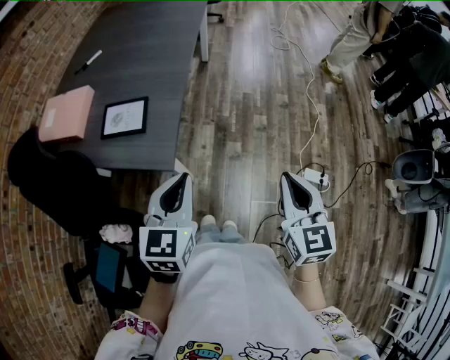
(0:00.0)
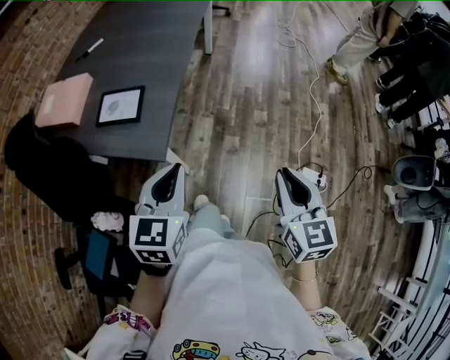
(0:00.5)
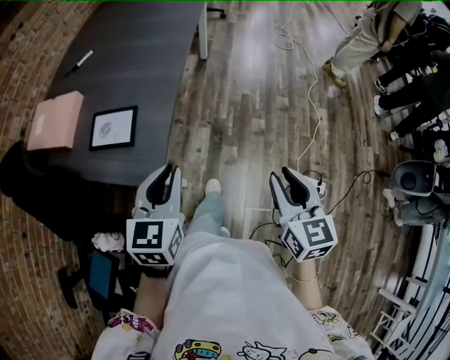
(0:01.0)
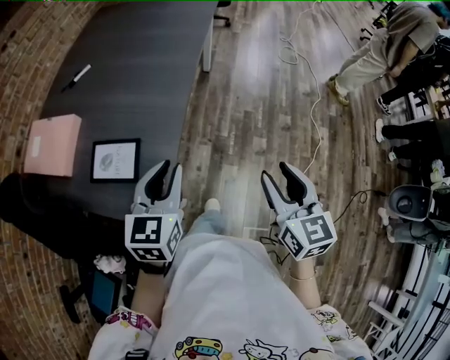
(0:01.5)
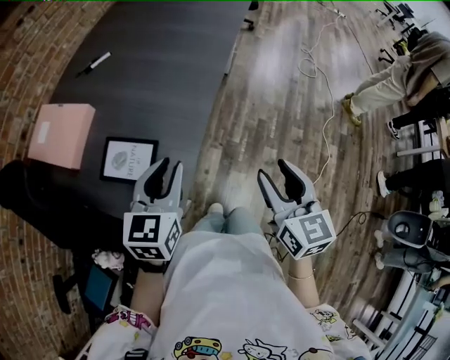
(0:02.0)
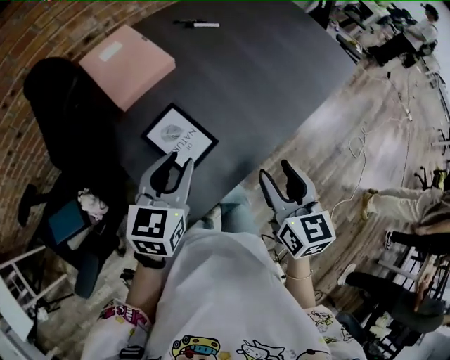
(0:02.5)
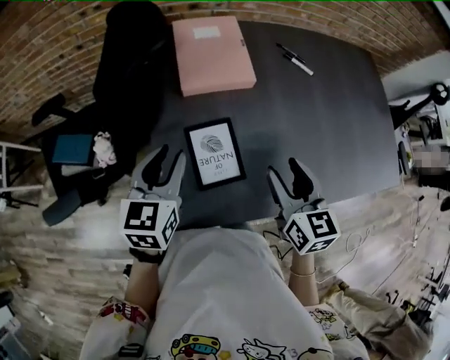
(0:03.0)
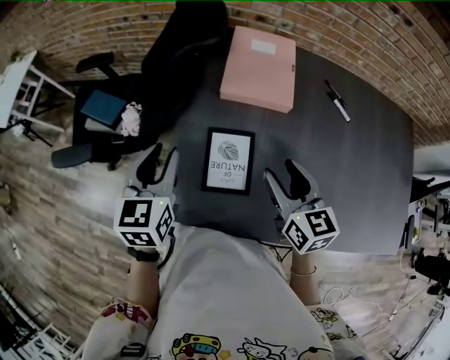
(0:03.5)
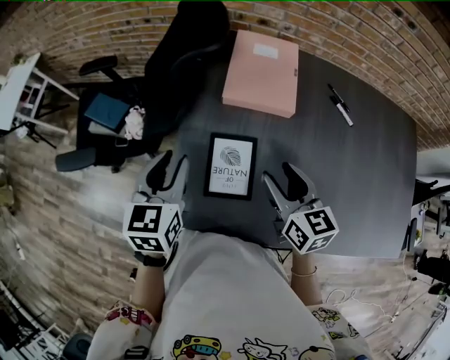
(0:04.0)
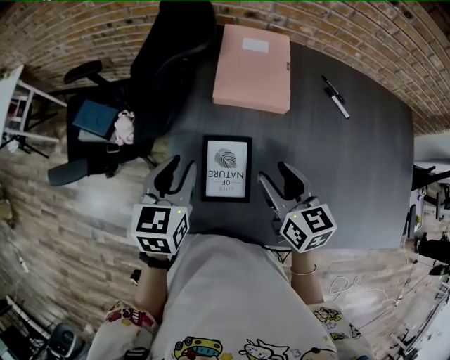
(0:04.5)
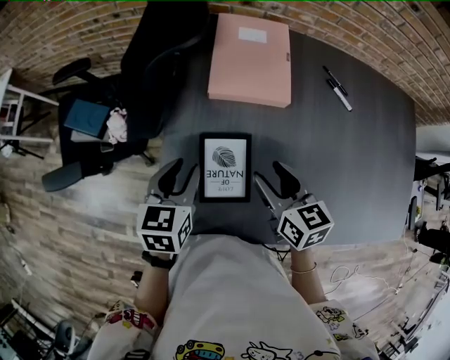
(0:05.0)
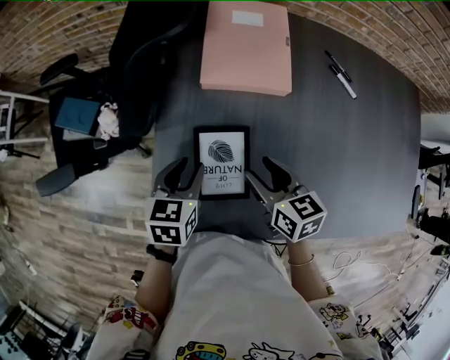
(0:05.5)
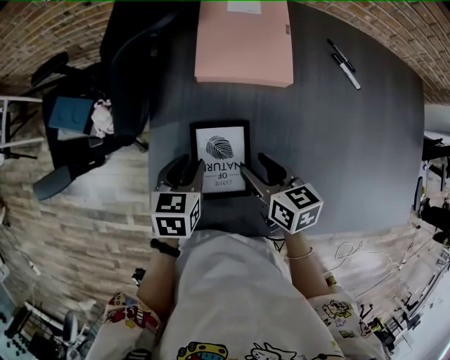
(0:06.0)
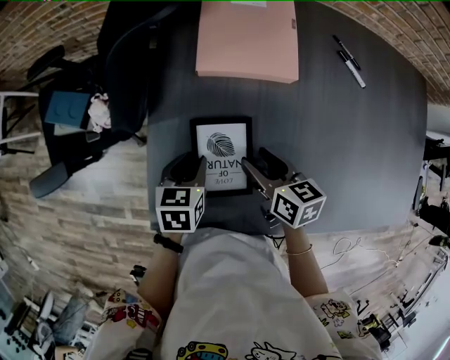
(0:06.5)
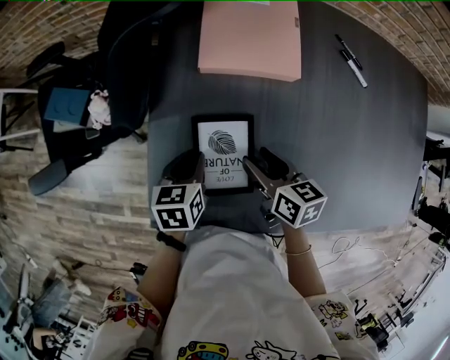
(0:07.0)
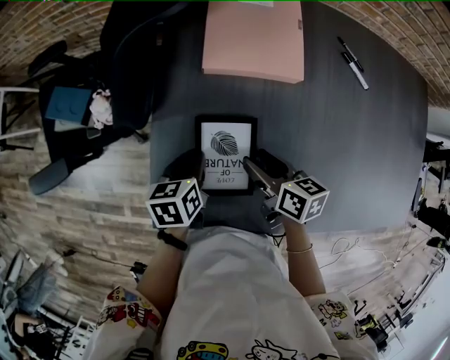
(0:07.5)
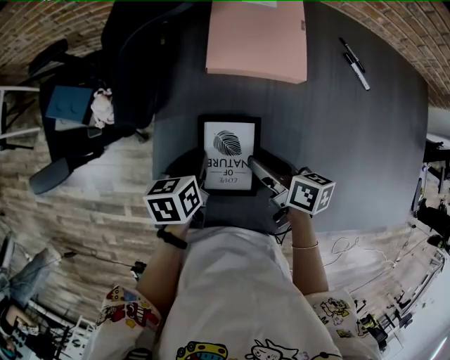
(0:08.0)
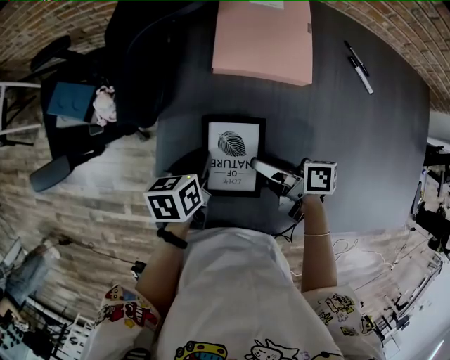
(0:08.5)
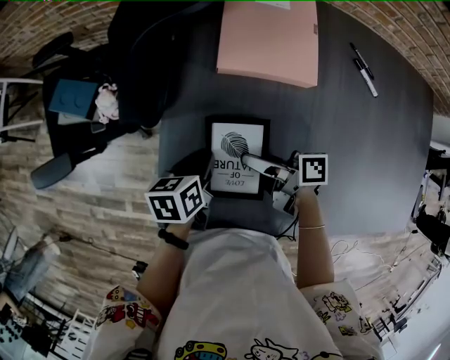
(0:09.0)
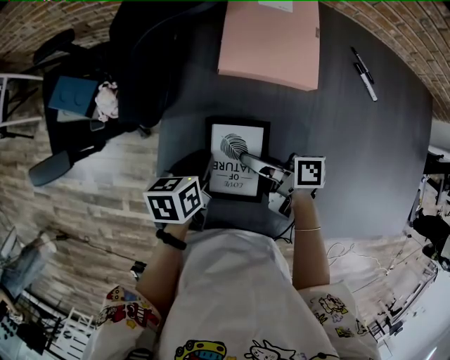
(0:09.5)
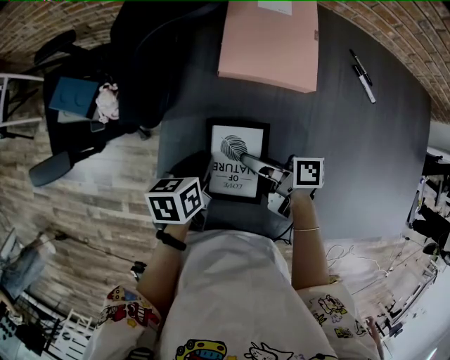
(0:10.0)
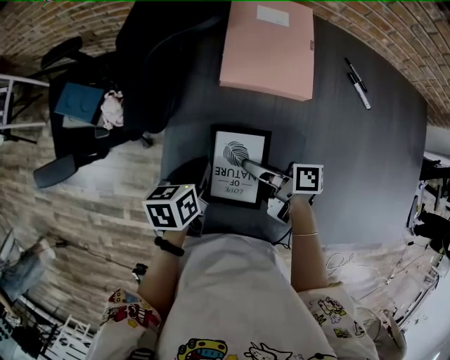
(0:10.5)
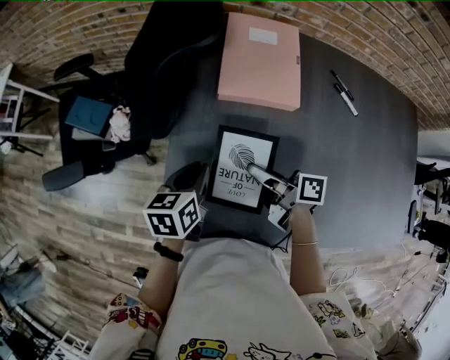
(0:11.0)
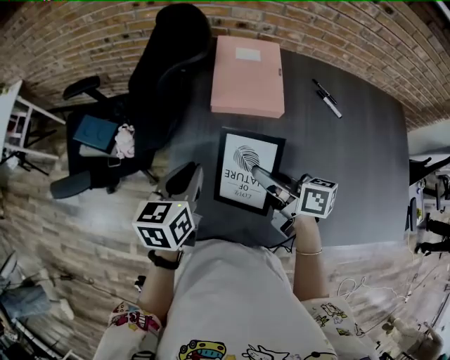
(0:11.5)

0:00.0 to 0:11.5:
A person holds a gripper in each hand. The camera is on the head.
0:00.0 to 0:02.0: The two grippers go about 25 cm forward. The left gripper opens; the right gripper opens up.
0:02.0 to 0:04.0: The left gripper ends up approximately 20 cm from where it was, and turns by about 90 degrees, while the right gripper moves about 40 cm, and swivels about 90 degrees.
0:04.0 to 0:06.0: Both grippers travel together downward, about 15 cm. The right gripper changes its angle by some 20 degrees. The left gripper rotates some 30 degrees.
0:06.0 to 0:07.5: The grippers stay close to where they were, moving slightly.
0:07.5 to 0:09.5: The right gripper shifts some 5 cm to the left, turns by about 40 degrees, and closes up.
0:09.5 to 0:11.5: Both grippers travel together upward, approximately 15 cm. The right gripper changes its angle by roughly 30 degrees. The left gripper turns by about 30 degrees.

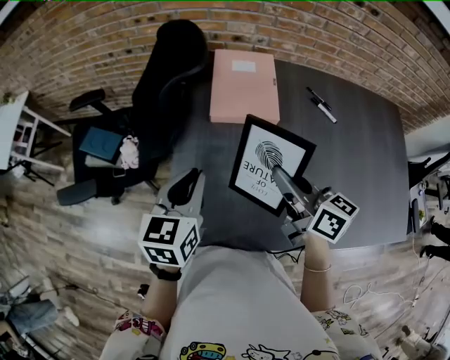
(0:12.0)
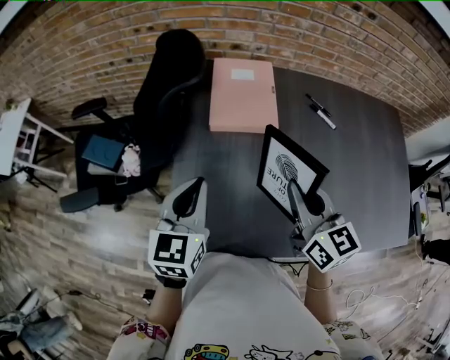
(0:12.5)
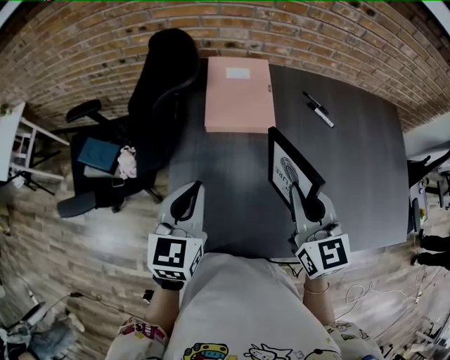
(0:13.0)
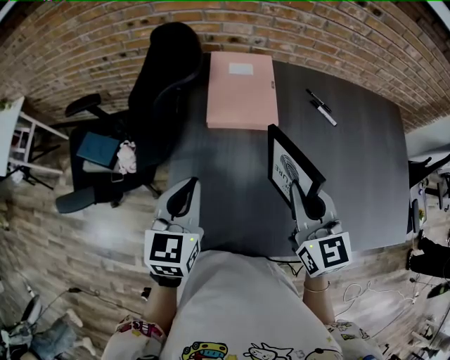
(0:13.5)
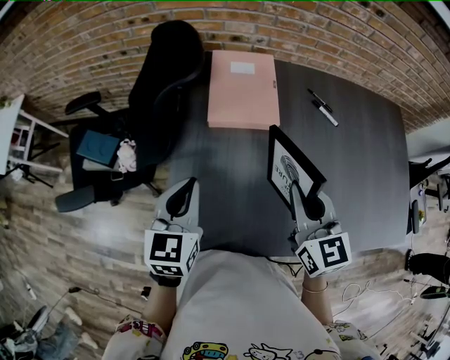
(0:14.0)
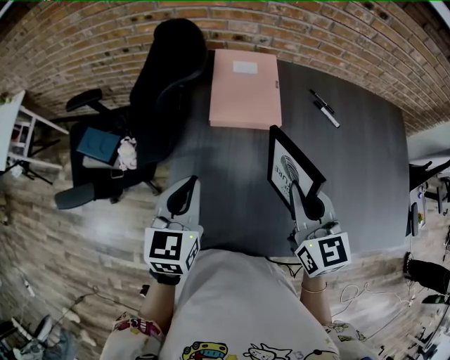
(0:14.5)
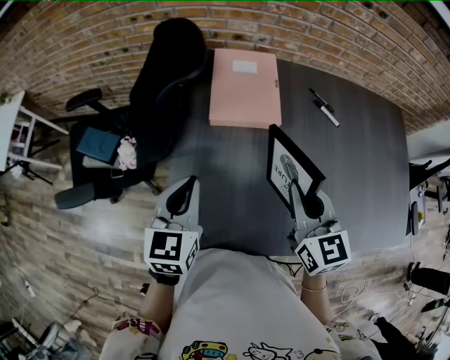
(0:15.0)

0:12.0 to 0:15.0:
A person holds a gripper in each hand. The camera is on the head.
0:12.0 to 0:13.5: The right gripper changes its angle by roughly 40 degrees.
0:13.5 to 0:15.0: Neither gripper changes place.

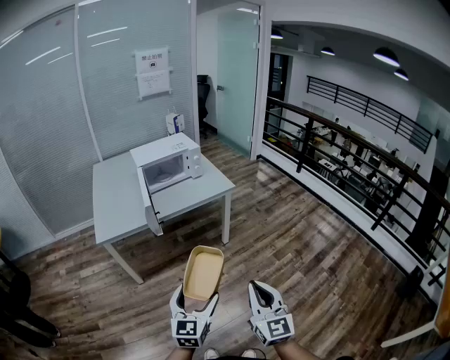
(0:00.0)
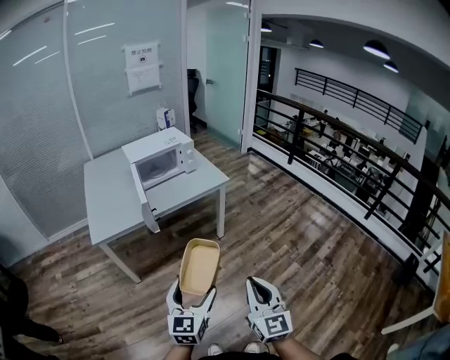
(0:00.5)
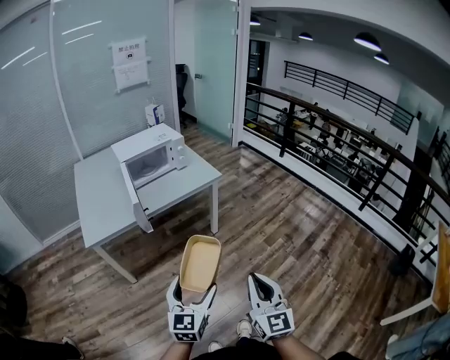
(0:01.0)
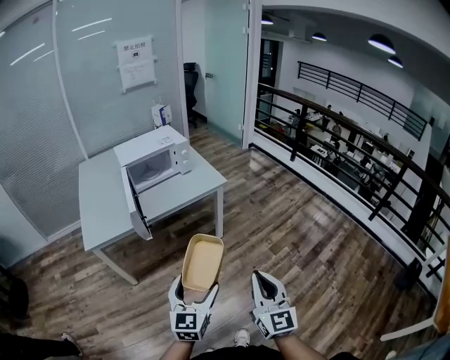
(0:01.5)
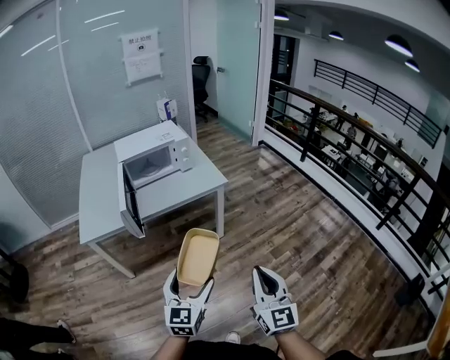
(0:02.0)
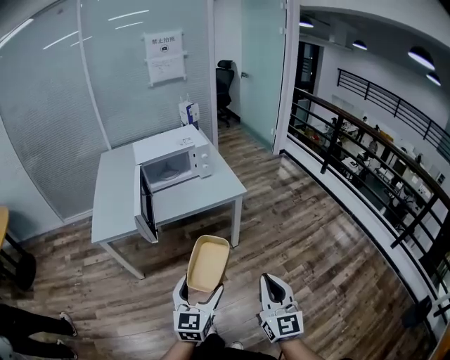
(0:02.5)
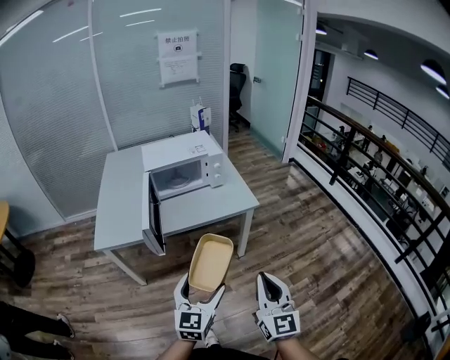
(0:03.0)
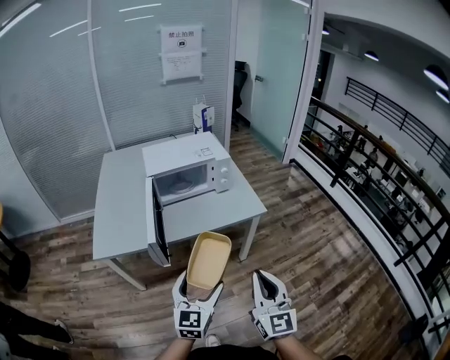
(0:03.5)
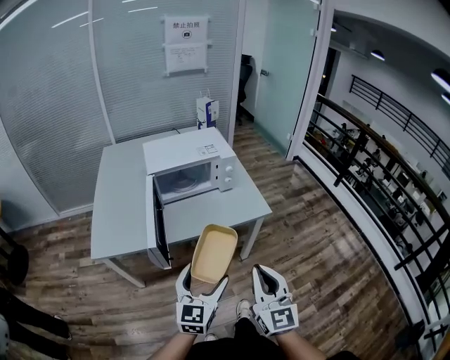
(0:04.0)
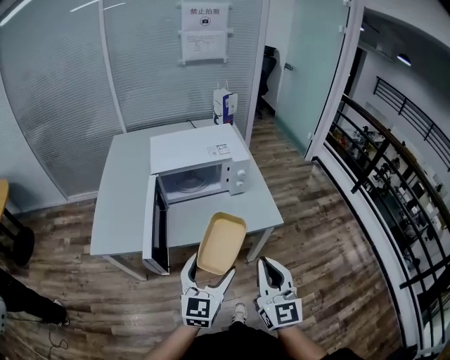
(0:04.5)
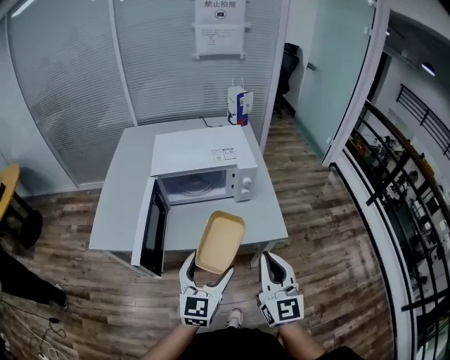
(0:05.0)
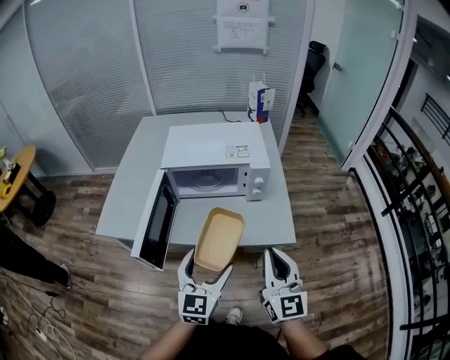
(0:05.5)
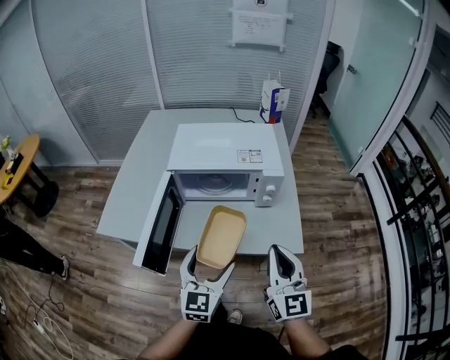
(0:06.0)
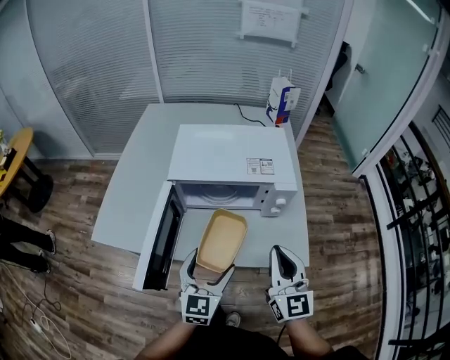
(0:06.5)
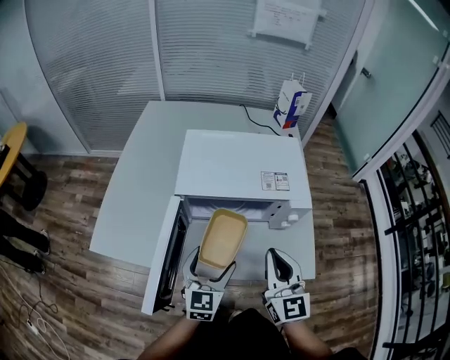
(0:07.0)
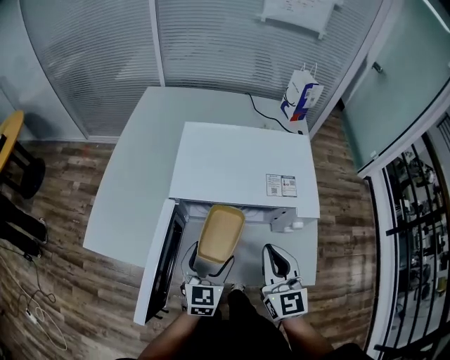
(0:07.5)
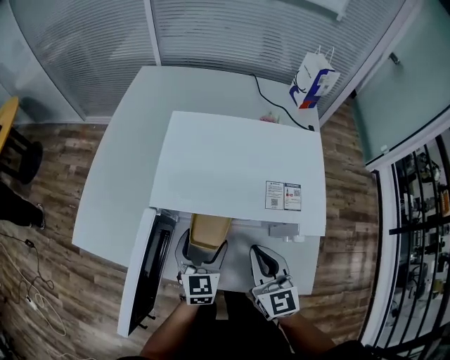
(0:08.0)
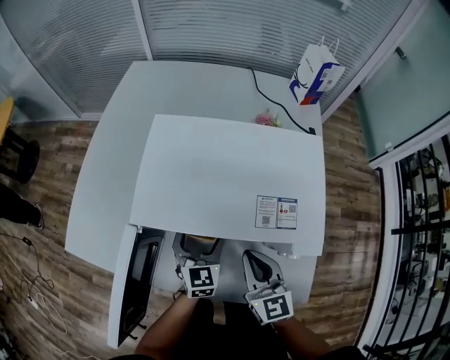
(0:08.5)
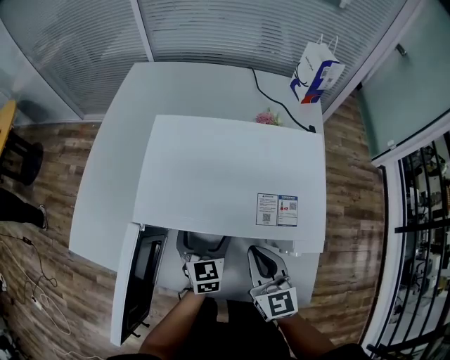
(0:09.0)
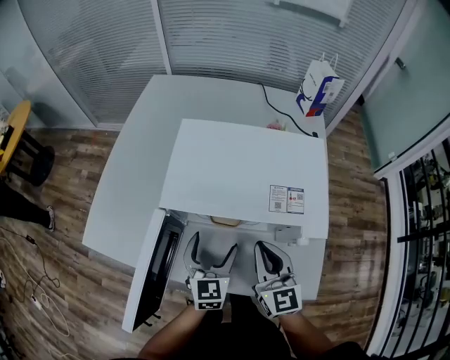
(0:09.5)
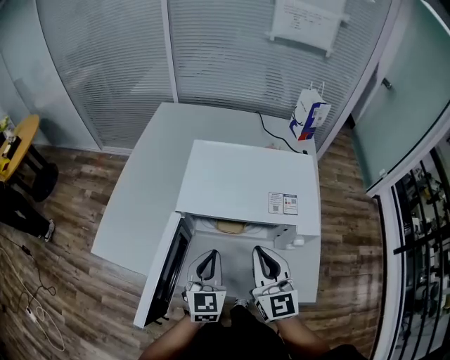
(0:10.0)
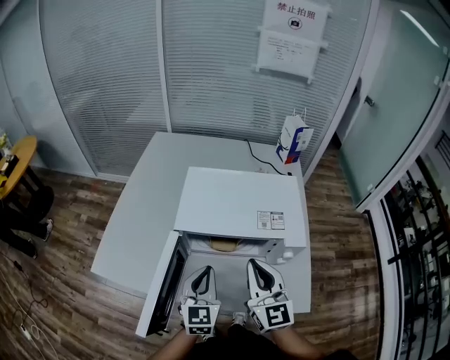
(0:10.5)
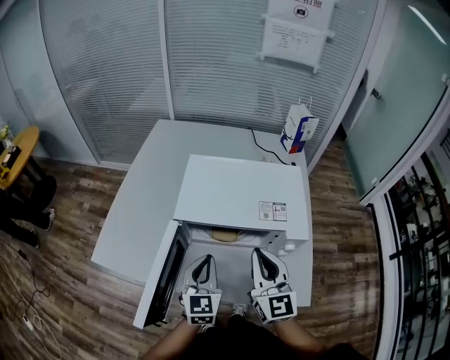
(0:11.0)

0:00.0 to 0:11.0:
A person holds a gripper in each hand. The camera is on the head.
0:00.0 to 0:02.0: Both grippers move forward and to the right, some 15 cm.
0:02.0 to 0:03.5: The grippers both shift forward and to the left by about 20 cm.
0:03.5 to 0:05.5: Both grippers move forward, roughly 25 cm.
0:05.5 to 0:07.5: The left gripper moves forward and downward, some 25 cm. Meanwhile the right gripper is displaced forward by some 25 cm.
0:07.5 to 0:09.0: The right gripper travels downward and forward by some 10 cm. The left gripper shifts about 15 cm forward and downward.
0:09.0 to 0:11.0: The right gripper moves upward, roughly 15 cm; the left gripper is displaced upward and backward by roughly 20 cm, and closes its fingers.

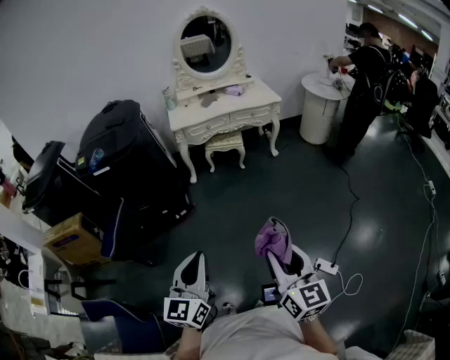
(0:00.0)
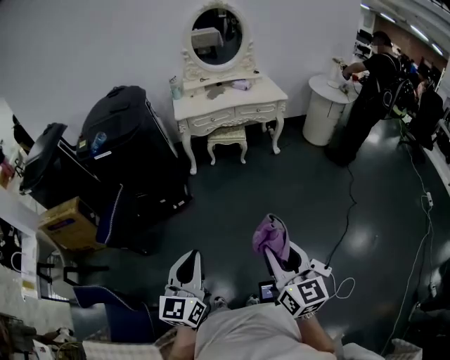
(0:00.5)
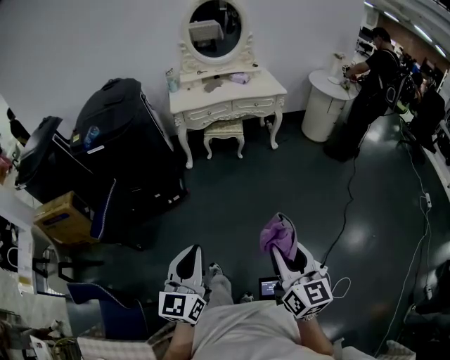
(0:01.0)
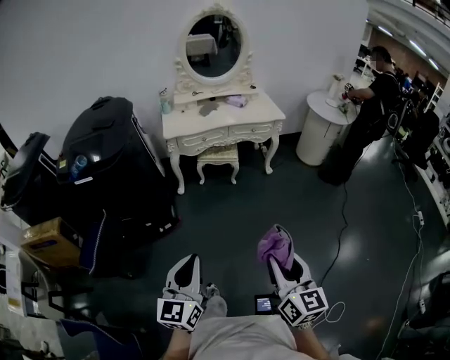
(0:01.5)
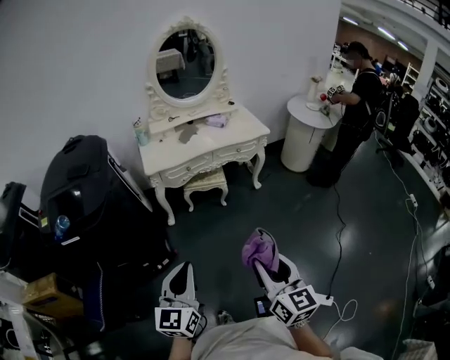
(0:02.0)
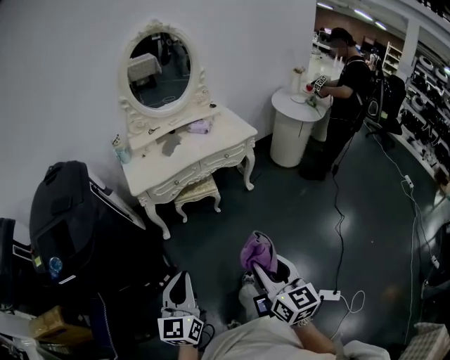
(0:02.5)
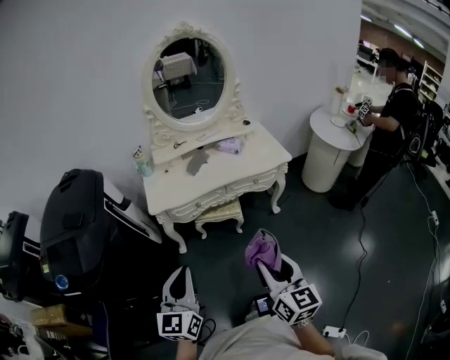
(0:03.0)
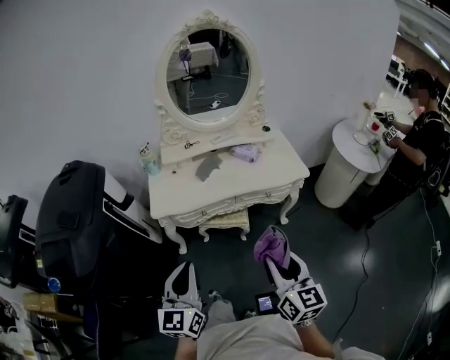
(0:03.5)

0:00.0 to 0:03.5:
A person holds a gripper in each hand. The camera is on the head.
0:00.0 to 0:02.0: The two grippers go some 35 cm forward.
0:02.0 to 0:03.5: The grippers both shift forward by approximately 40 cm.
